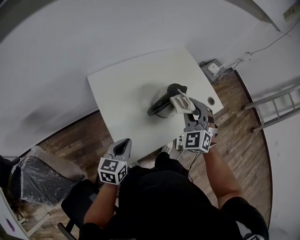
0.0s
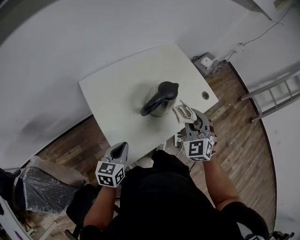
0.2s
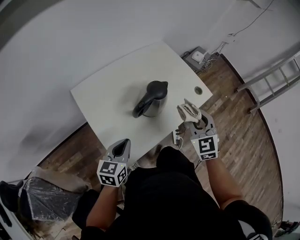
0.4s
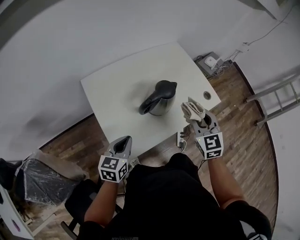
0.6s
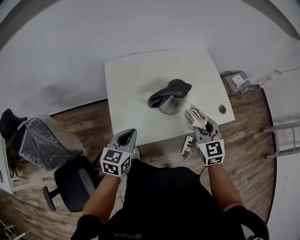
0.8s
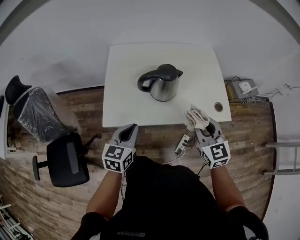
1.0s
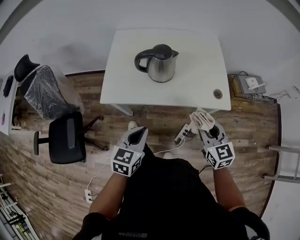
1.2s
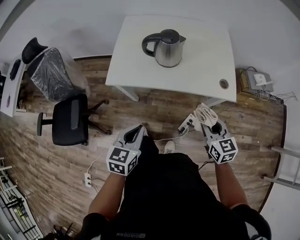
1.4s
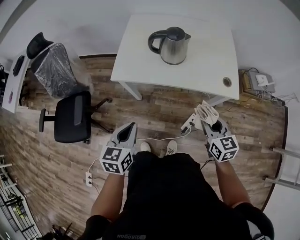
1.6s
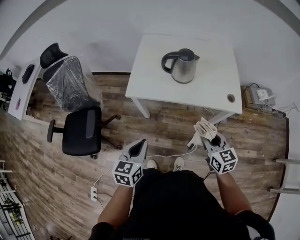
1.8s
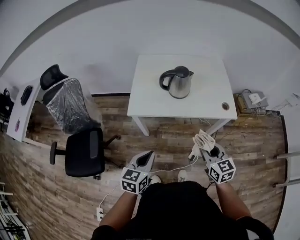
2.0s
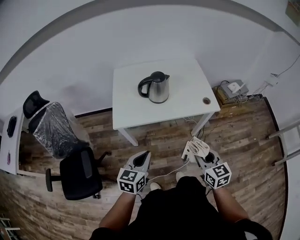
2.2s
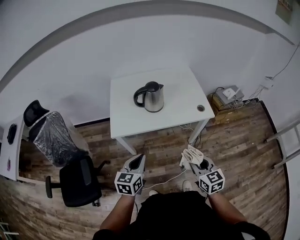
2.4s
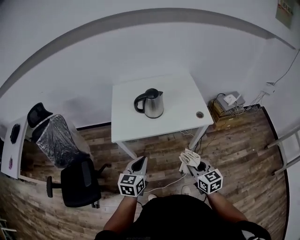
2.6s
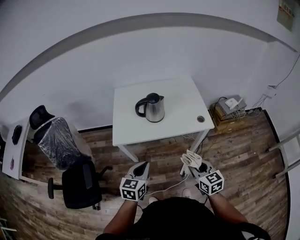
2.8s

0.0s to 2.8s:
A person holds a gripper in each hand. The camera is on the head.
0.0s to 1.4s: The right gripper shifts by about 35 cm, and swivels roughly 70 degrees, while the left gripper ends up approximately 40 cm from where it was, and changes its angle by some 30 degrees.
1.4s to 2.8s: The left gripper moves upward, roughly 10 cm. Meanwhile the right gripper goes some 15 cm backward, upward and to the left.

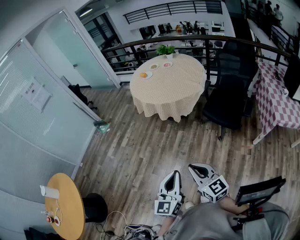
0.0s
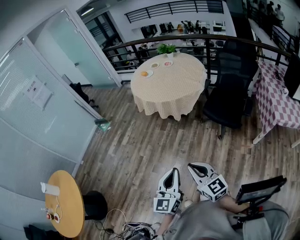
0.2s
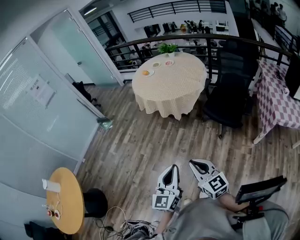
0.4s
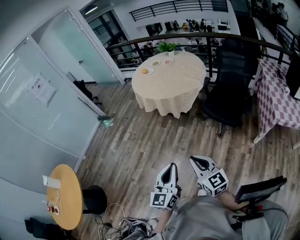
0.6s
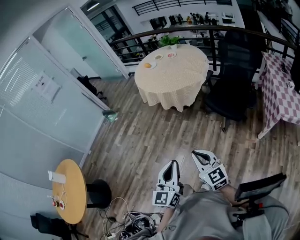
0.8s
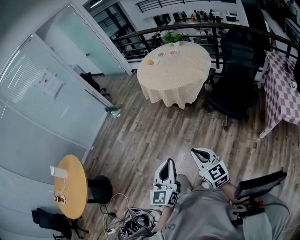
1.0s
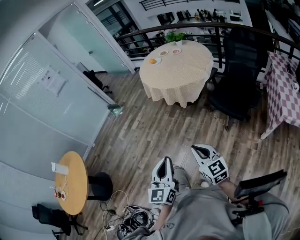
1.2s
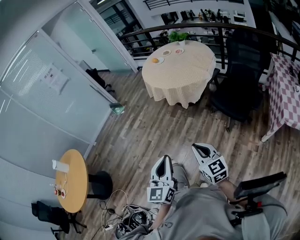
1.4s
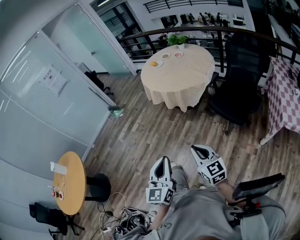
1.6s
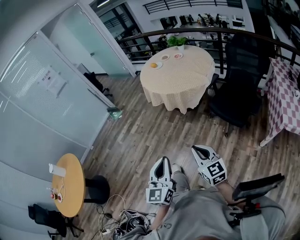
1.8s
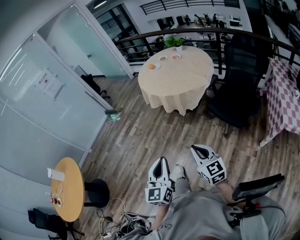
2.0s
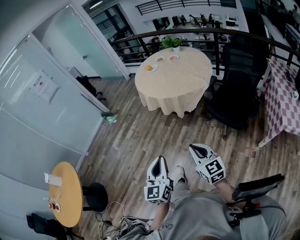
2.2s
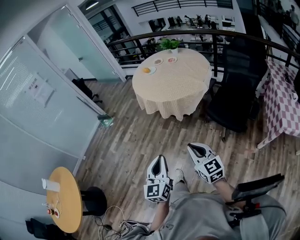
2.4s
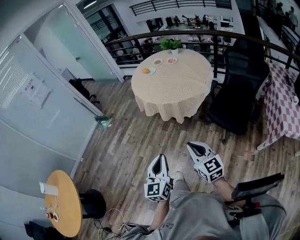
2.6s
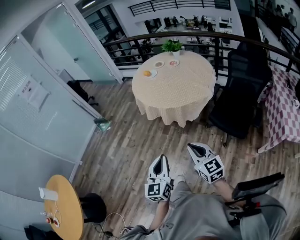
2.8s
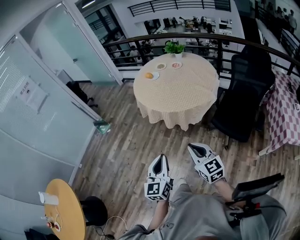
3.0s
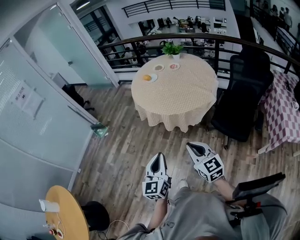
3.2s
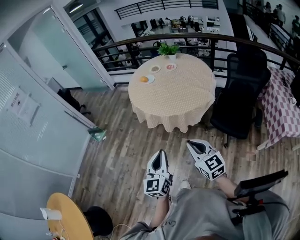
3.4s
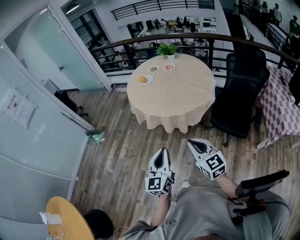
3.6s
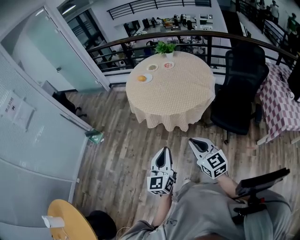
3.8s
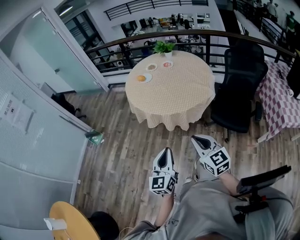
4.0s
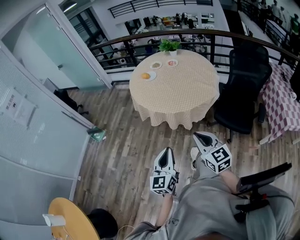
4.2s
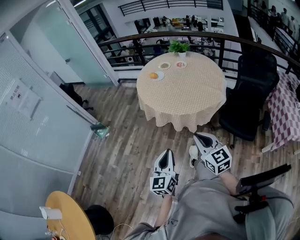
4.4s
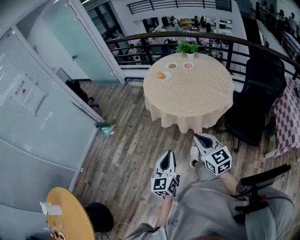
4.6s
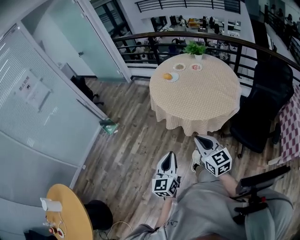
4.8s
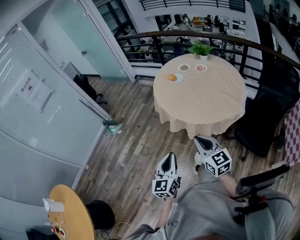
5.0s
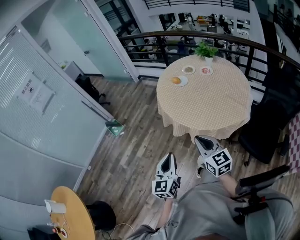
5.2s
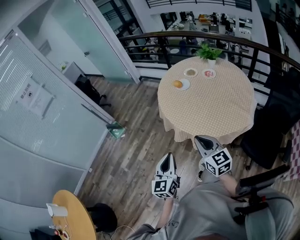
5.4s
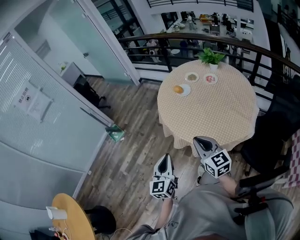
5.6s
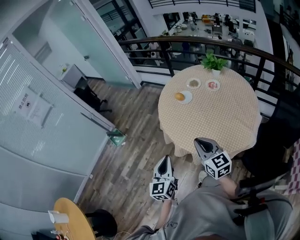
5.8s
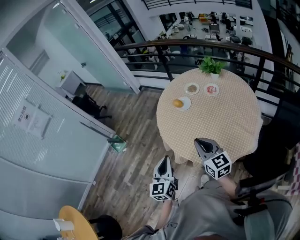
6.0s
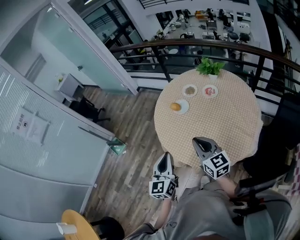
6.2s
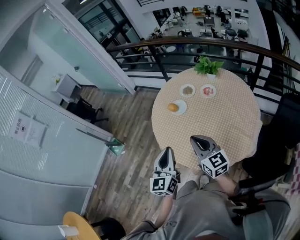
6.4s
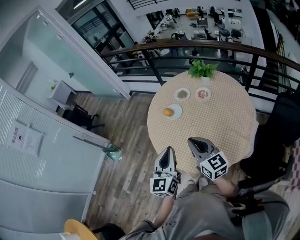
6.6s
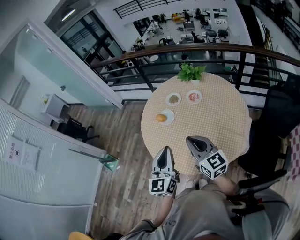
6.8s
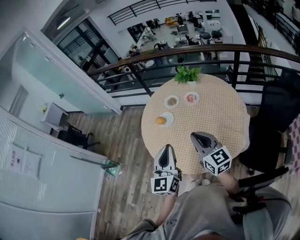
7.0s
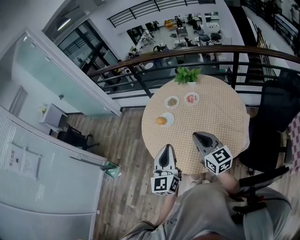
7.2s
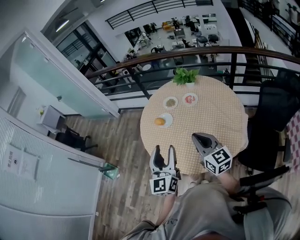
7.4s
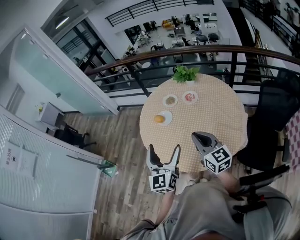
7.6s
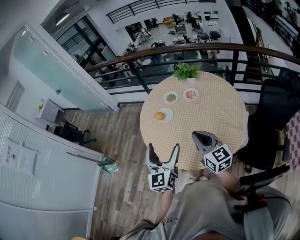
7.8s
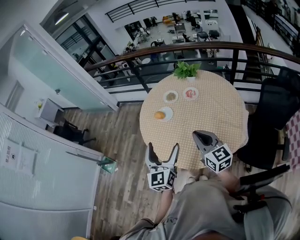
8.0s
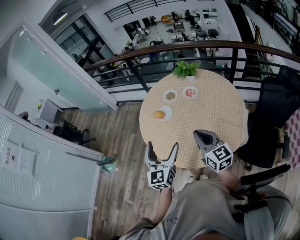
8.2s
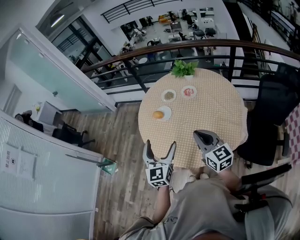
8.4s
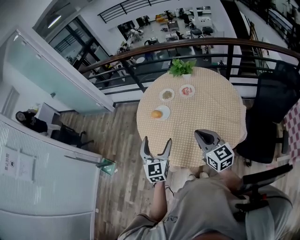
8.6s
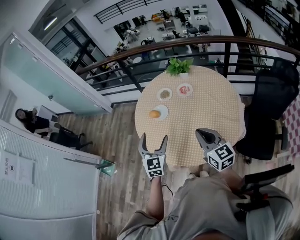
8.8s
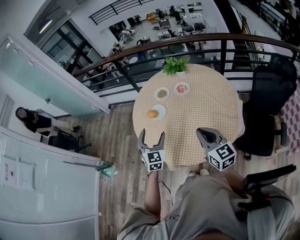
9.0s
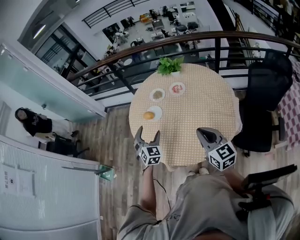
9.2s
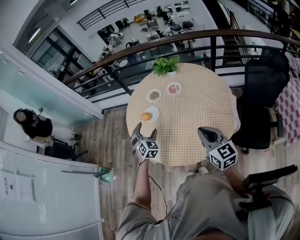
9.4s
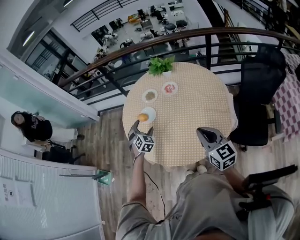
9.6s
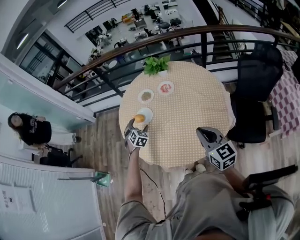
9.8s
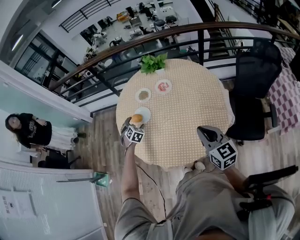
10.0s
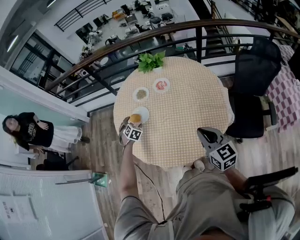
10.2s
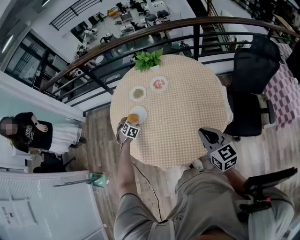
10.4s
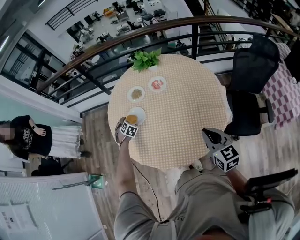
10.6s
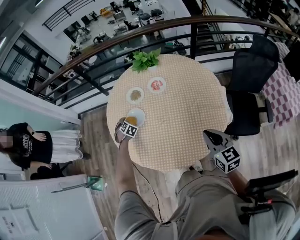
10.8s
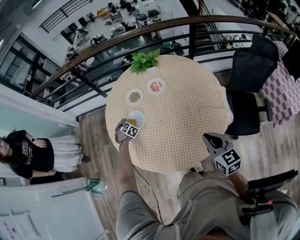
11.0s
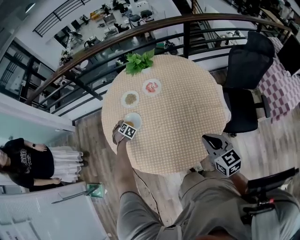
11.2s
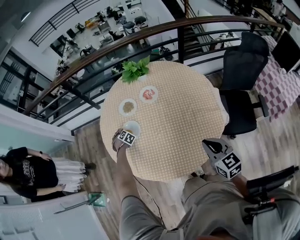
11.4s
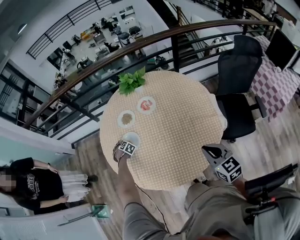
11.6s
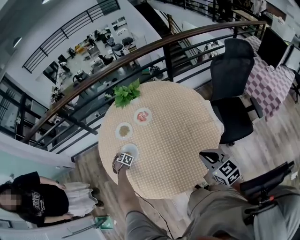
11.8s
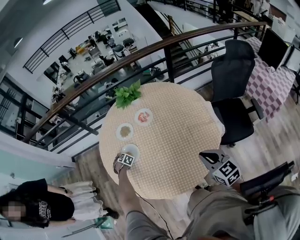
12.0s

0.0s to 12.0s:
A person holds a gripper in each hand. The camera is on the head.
0.0s to 1.6s: The left gripper shifts roughly 5 cm to the right. Meanwhile the right gripper moves to the right, roughly 10 cm.
1.6s to 3.0s: Both grippers move forward, some 30 cm.
3.0s to 4.4s: The grippers both shift forward and to the left by roughly 15 cm.
4.4s to 6.0s: The two grippers travel together, forward, some 40 cm.
6.0s to 7.6s: The left gripper travels forward, to the right and upward by about 15 cm, and opens up. Meanwhile the right gripper is displaced forward and to the right by about 10 cm.
7.6s to 9.0s: The left gripper moves downward and forward, approximately 15 cm, and turns by roughly 40 degrees.
9.0s to 10.4s: The right gripper shifts about 5 cm downward. The left gripper heads downward and forward, covering some 35 cm, and angles its fingers downward, by about 40 degrees.
10.4s to 12.0s: The left gripper heads downward, covering roughly 15 cm, and changes its angle by approximately 20 degrees.

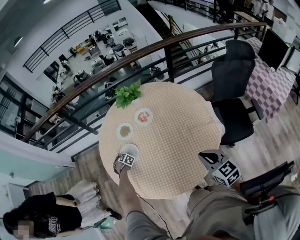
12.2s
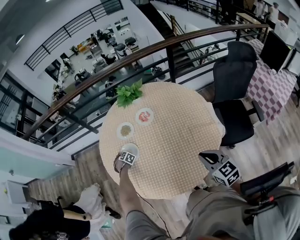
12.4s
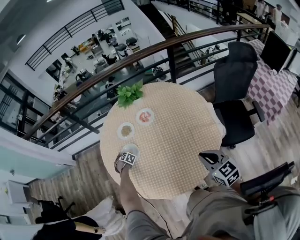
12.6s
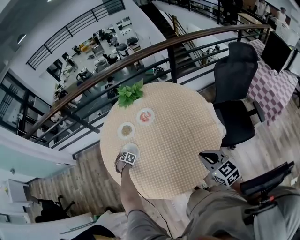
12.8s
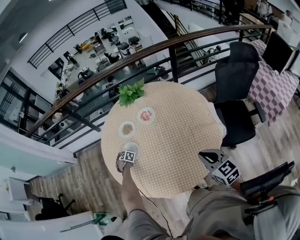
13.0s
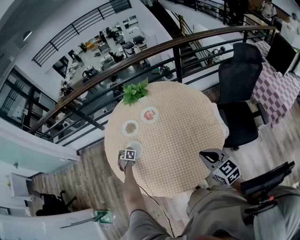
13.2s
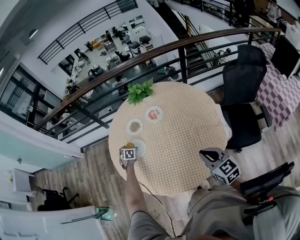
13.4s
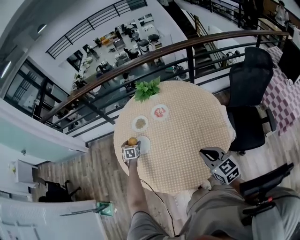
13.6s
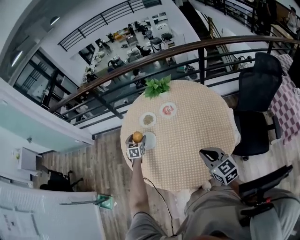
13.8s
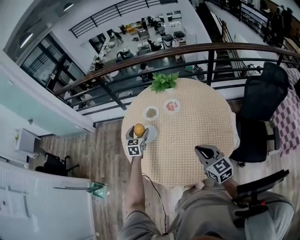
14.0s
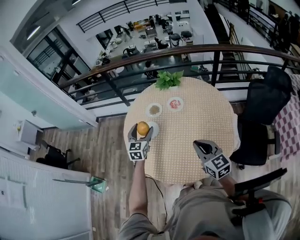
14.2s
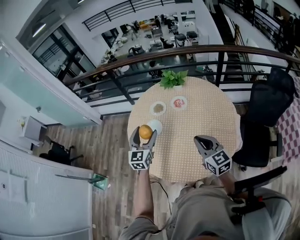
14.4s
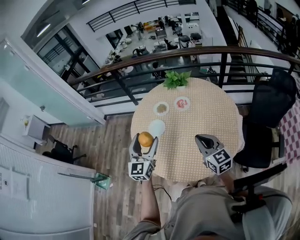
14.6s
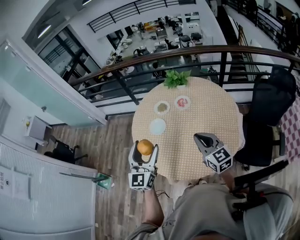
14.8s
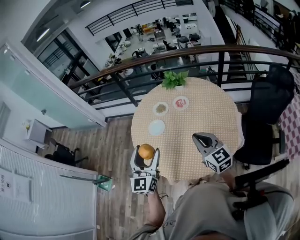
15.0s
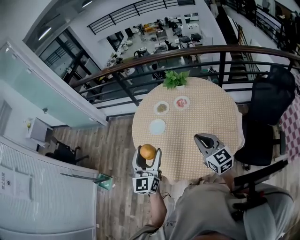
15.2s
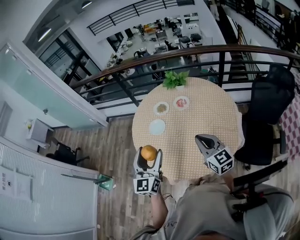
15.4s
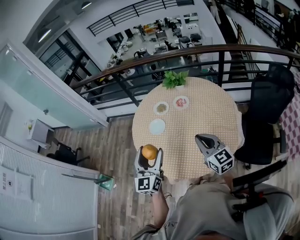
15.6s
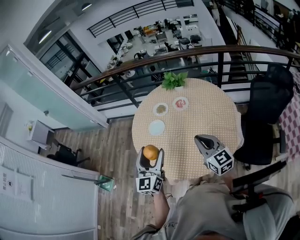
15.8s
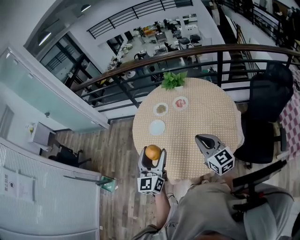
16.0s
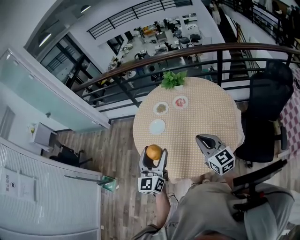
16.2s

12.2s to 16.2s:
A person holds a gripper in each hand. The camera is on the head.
12.2s to 13.6s: The left gripper is displaced upward by about 15 cm, and turns by about 50 degrees.
13.6s to 14.8s: The left gripper heads upward and backward, covering approximately 50 cm, and tips its fingers upward by about 50 degrees. The right gripper moves upward and to the left, roughly 10 cm.
14.8s to 16.2s: The right gripper changes place by approximately 5 cm, while the left gripper goes approximately 5 cm to the right and backward.

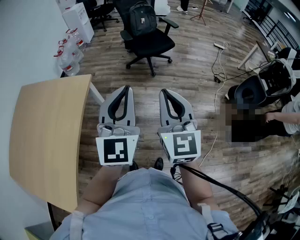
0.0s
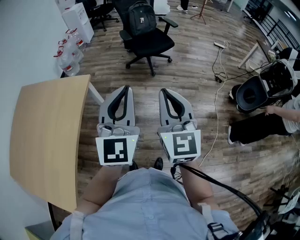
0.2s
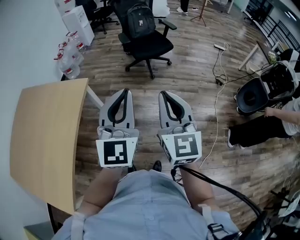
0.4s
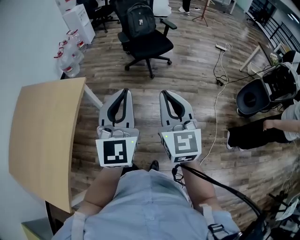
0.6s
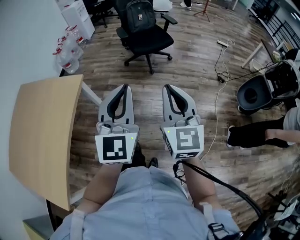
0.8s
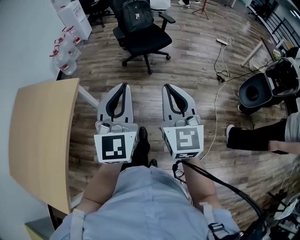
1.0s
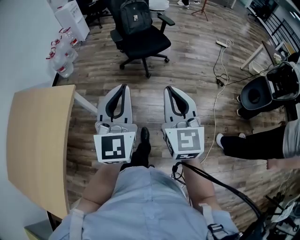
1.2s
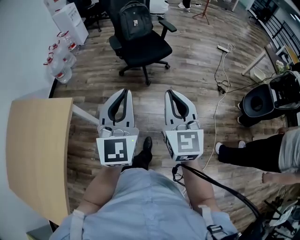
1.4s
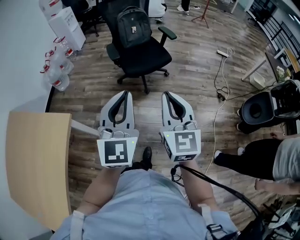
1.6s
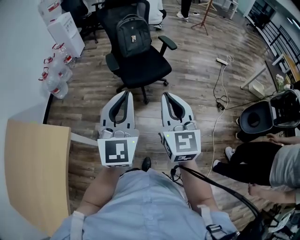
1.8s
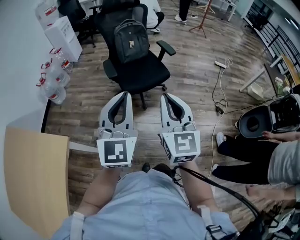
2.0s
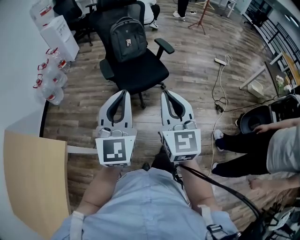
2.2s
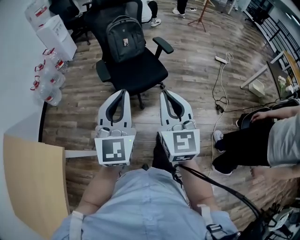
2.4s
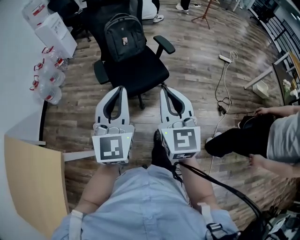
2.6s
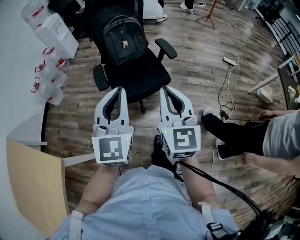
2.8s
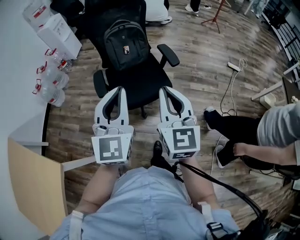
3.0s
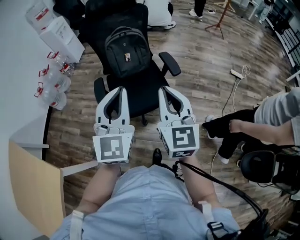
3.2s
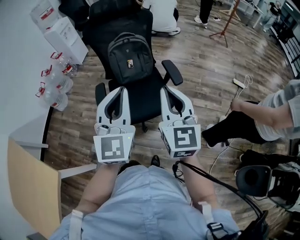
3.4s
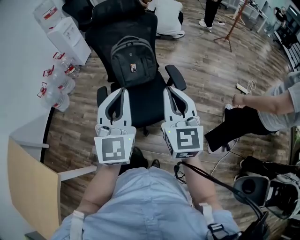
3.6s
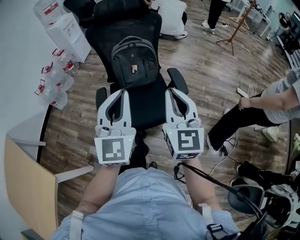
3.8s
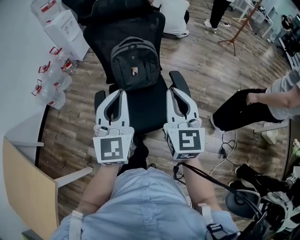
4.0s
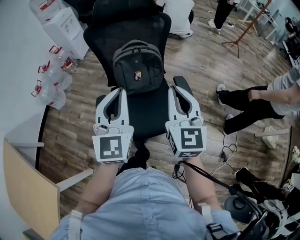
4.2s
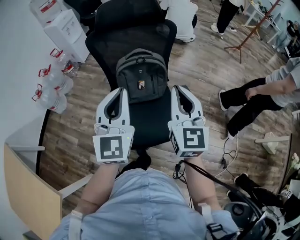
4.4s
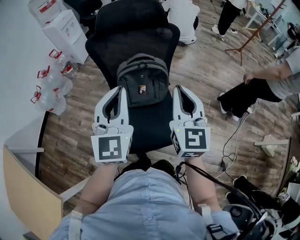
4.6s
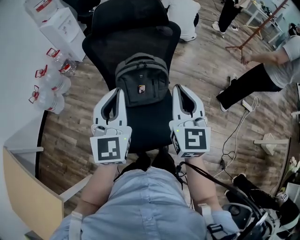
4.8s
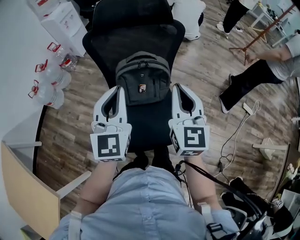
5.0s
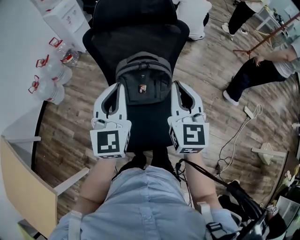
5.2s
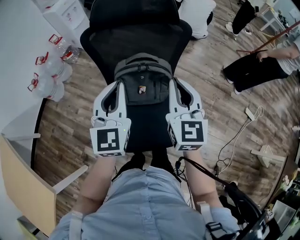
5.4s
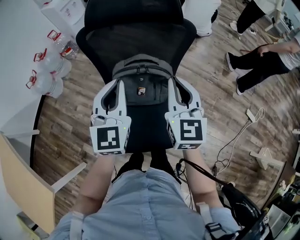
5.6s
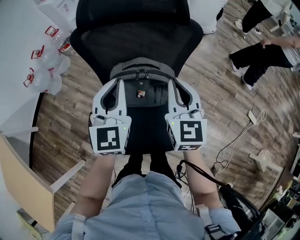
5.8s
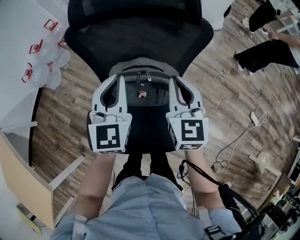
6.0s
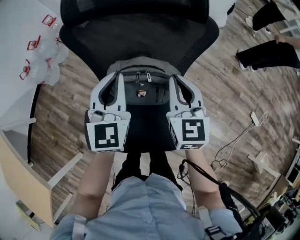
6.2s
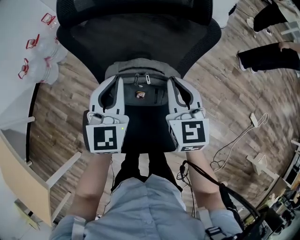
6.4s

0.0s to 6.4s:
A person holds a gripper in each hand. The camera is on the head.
0.0s to 1.6s: Both grippers travel together forward, approximately 25 cm.
1.6s to 3.2s: Both grippers travel together forward, some 40 cm.
3.2s to 4.8s: Both grippers move forward, some 30 cm.
4.8s to 6.4s: Both grippers move forward and downward, about 20 cm. The right gripper turns by roughly 20 degrees.
